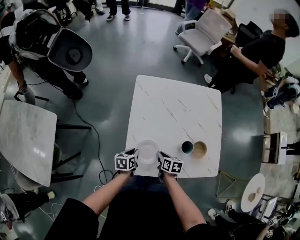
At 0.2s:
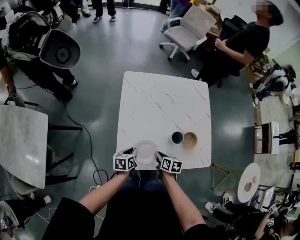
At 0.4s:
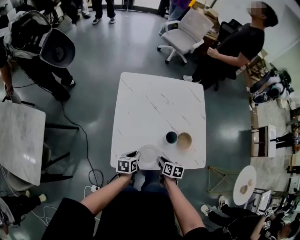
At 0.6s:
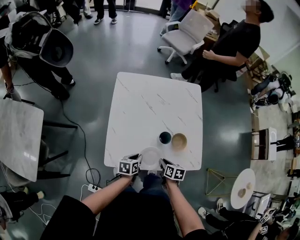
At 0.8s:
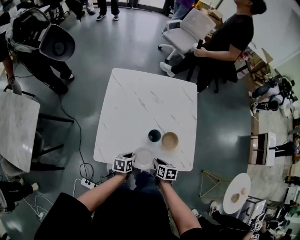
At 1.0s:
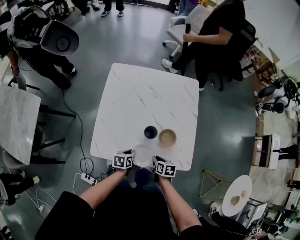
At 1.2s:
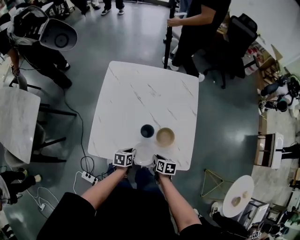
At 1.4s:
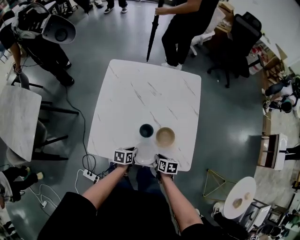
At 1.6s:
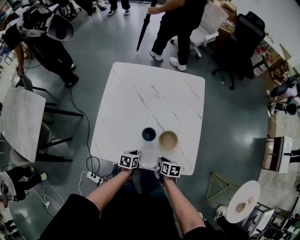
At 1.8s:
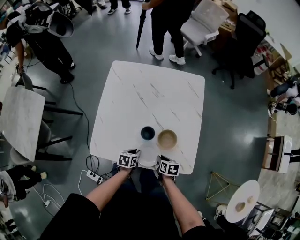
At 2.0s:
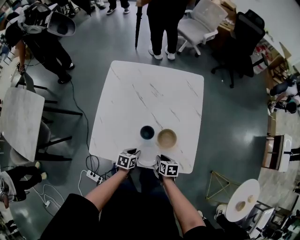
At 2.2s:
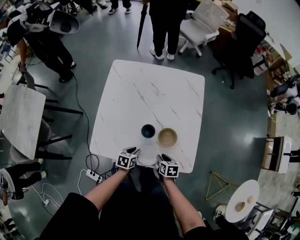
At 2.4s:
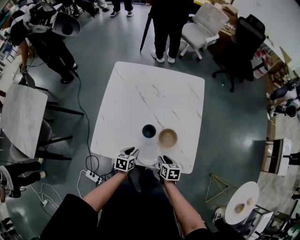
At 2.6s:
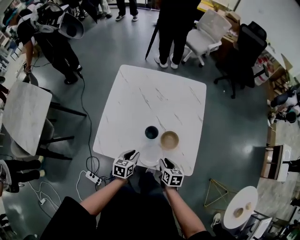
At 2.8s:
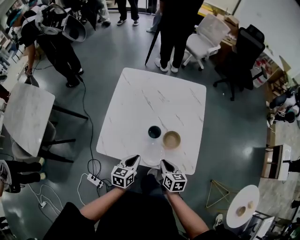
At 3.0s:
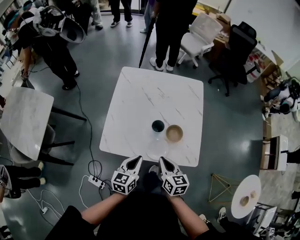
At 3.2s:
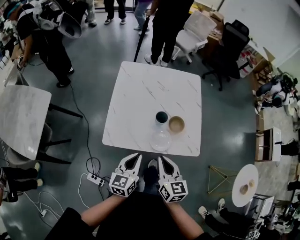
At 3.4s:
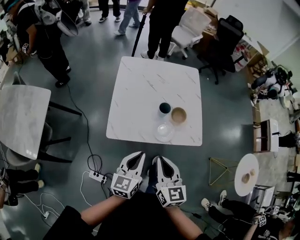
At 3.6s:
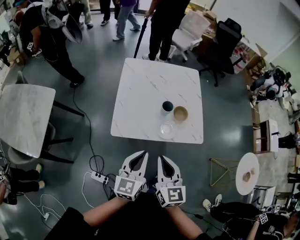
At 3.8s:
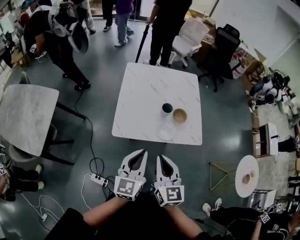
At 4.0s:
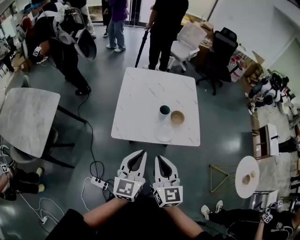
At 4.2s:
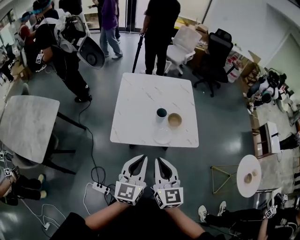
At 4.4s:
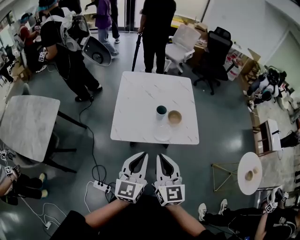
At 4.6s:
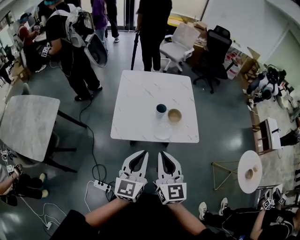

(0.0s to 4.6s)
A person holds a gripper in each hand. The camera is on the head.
0.0s - 1.6s: Both grippers move to the right, about 25 cm.
1.6s - 3.0s: Both grippers move upward, some 25 cm. The left gripper points its fingers roughly 30 degrees further upward. Meanwhile the right gripper swivels some 40 degrees.
3.0s - 4.6s: The grippers both shift upward and backward by roughly 30 cm. The right gripper changes its angle by about 40 degrees, while the left gripper swivels about 30 degrees.

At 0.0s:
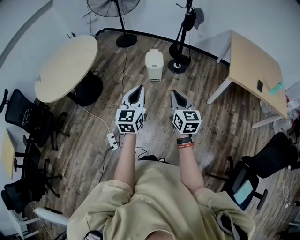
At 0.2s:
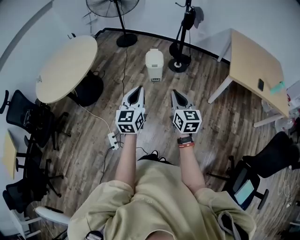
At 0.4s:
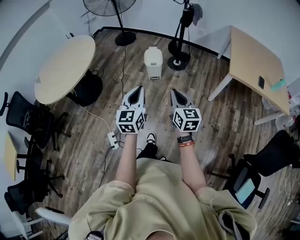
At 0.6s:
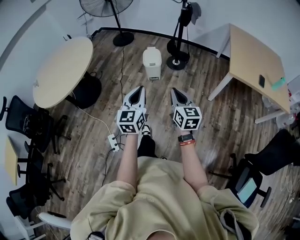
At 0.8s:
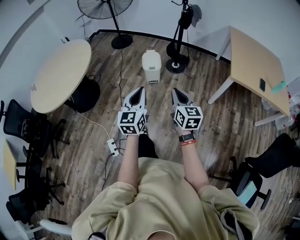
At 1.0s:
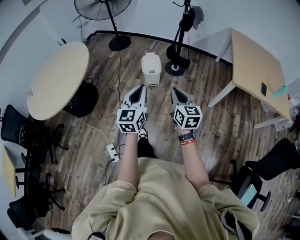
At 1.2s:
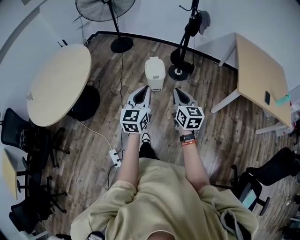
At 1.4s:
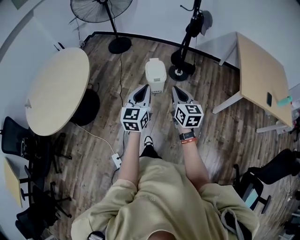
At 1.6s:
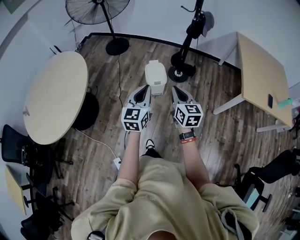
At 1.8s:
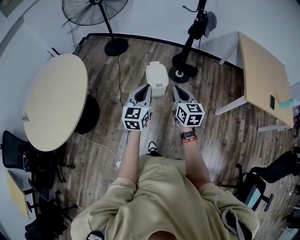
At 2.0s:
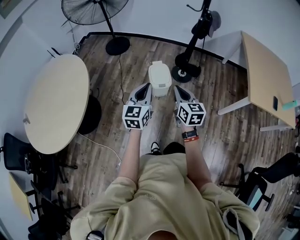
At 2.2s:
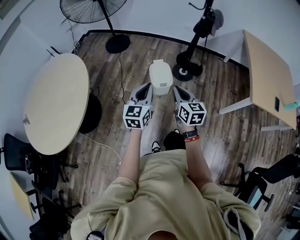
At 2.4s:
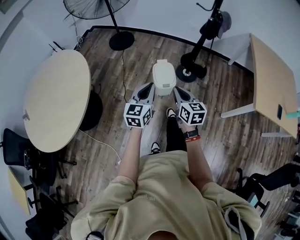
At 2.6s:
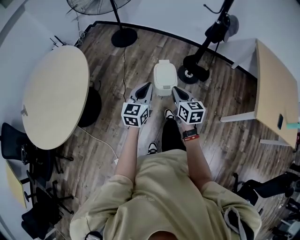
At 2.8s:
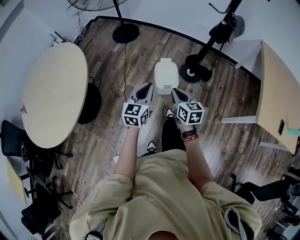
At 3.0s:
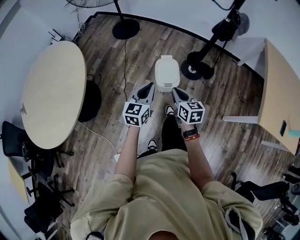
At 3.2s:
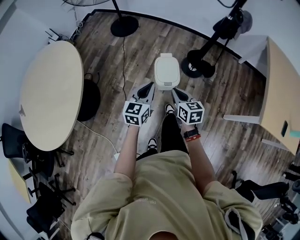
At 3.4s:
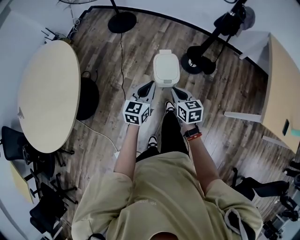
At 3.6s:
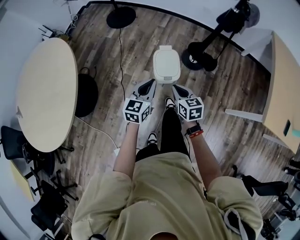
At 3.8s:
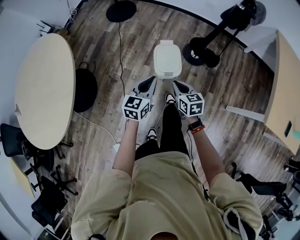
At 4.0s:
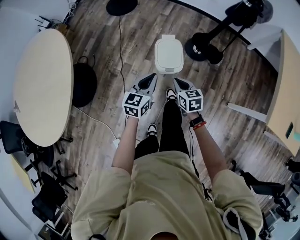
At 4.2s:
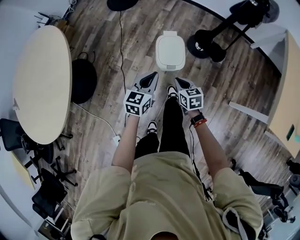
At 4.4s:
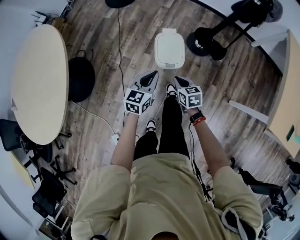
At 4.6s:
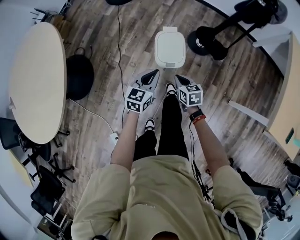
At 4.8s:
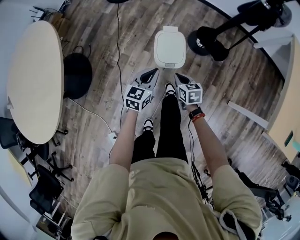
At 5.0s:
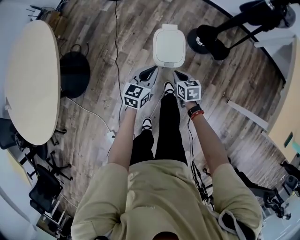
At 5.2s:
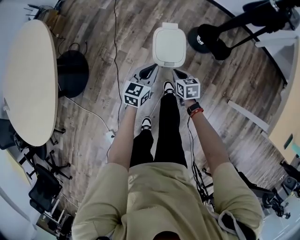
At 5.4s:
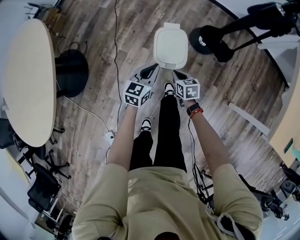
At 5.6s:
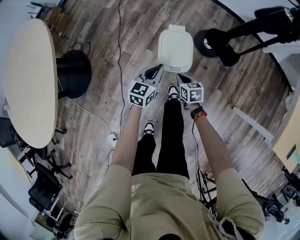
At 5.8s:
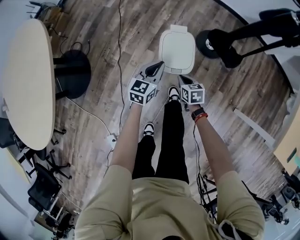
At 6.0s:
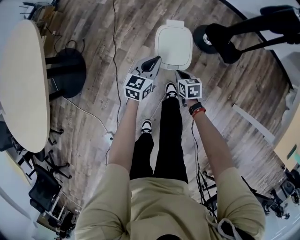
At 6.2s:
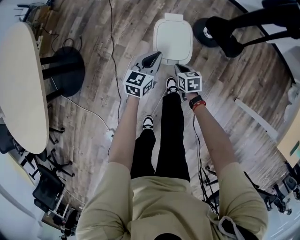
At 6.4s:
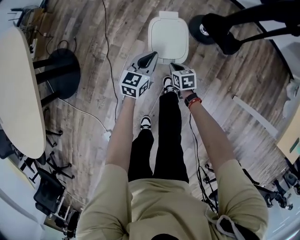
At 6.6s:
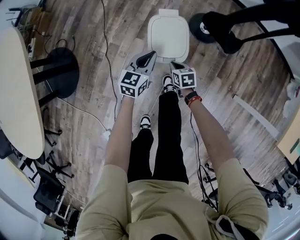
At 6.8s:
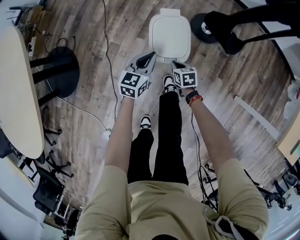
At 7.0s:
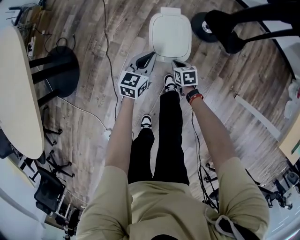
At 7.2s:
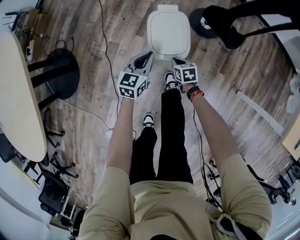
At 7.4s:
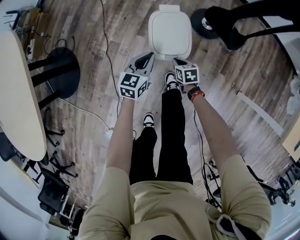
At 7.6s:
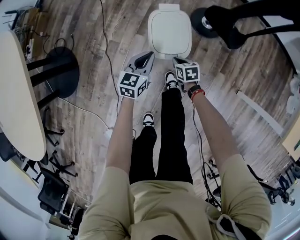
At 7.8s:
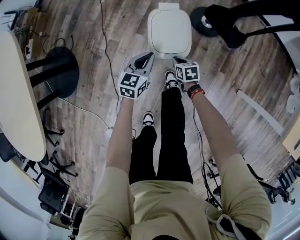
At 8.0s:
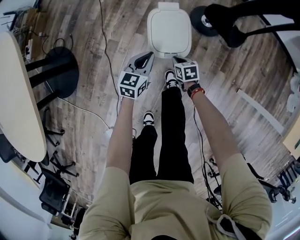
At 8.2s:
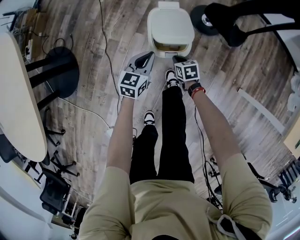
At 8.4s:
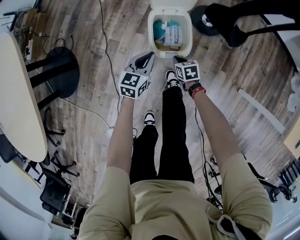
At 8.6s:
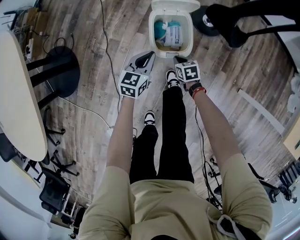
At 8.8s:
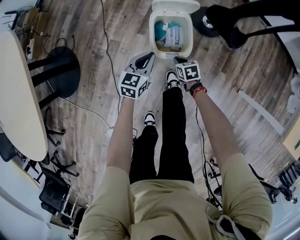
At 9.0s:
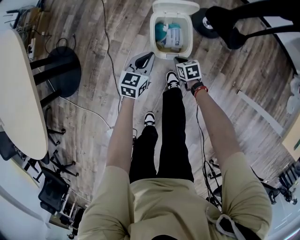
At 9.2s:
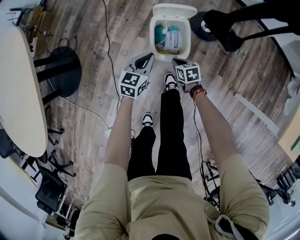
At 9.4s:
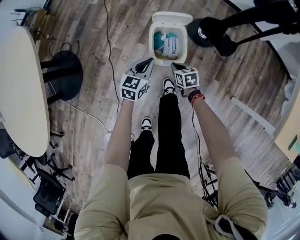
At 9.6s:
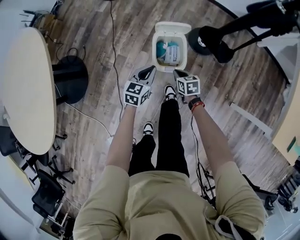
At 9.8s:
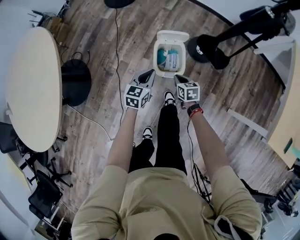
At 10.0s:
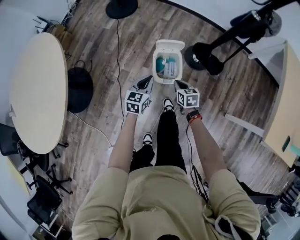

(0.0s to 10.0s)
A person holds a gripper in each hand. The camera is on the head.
0.0s - 1.4s: Both grippers move forward, roughly 35 cm.
1.4s - 2.8s: The right gripper is displaced forward and downward by about 35 cm. Meanwhile the left gripper travels forward by approximately 30 cm.
2.8s - 4.2s: The two grippers go approximately 25 cm downward and forward. The right gripper turns by about 20 degrees.
4.2s - 5.8s: The two grippers go roughly 25 cm downward and forward.
5.8s - 7.2s: Both grippers travel together downward, approximately 10 cm.
7.2s - 8.6s: There are only small adjustments of the grippers.
8.6s - 10.0s: The grippers both shift upward by roughly 30 cm.

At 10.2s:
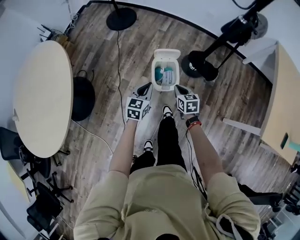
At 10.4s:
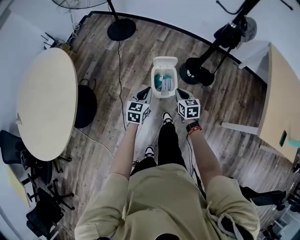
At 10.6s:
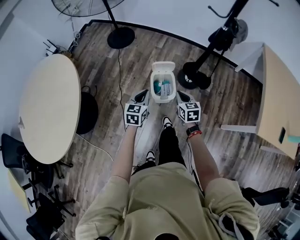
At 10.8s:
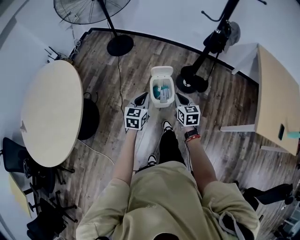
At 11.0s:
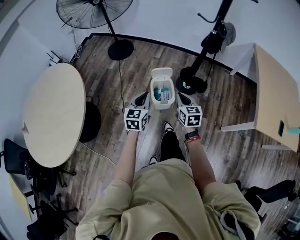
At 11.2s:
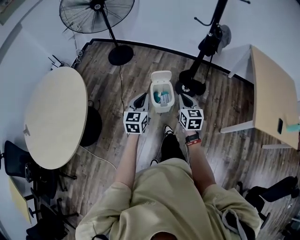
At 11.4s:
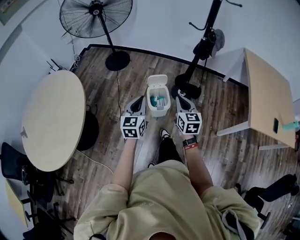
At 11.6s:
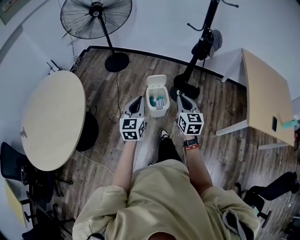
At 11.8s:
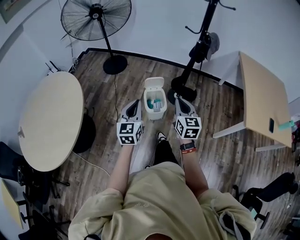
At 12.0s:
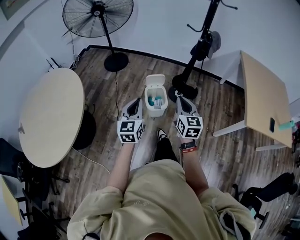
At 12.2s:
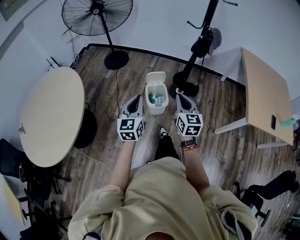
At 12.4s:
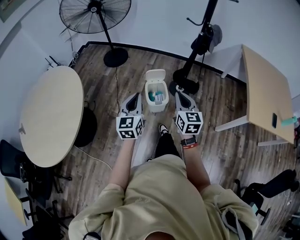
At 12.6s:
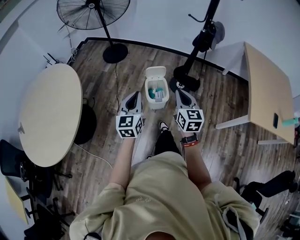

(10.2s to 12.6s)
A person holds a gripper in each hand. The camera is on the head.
10.2s - 11.4s: Both grippers travel together upward and backward, some 35 cm. The right gripper changes its angle by some 30 degrees.

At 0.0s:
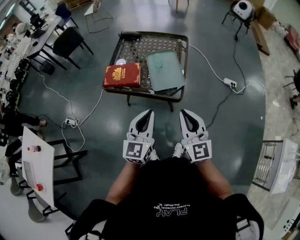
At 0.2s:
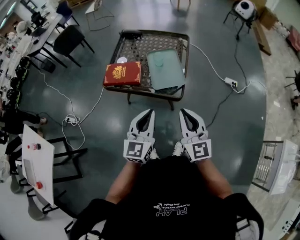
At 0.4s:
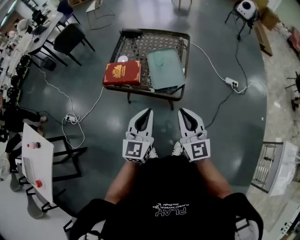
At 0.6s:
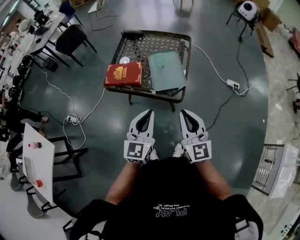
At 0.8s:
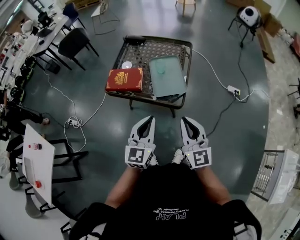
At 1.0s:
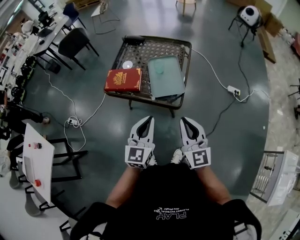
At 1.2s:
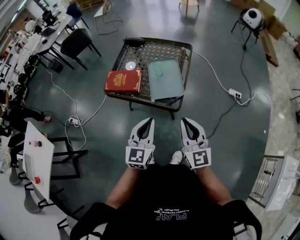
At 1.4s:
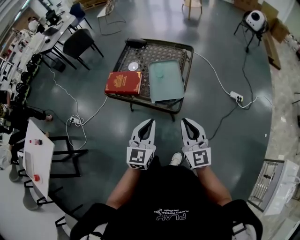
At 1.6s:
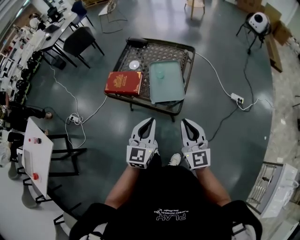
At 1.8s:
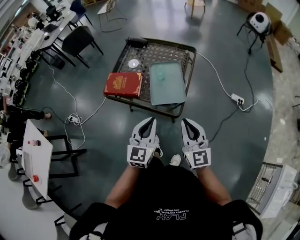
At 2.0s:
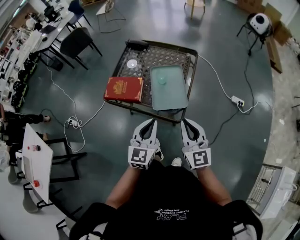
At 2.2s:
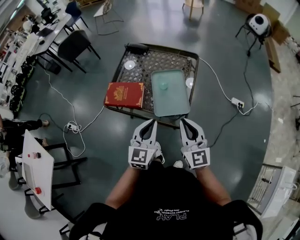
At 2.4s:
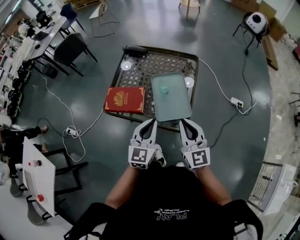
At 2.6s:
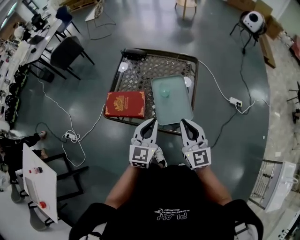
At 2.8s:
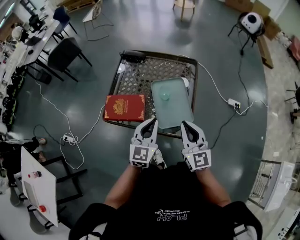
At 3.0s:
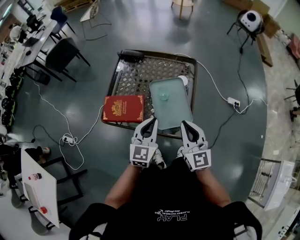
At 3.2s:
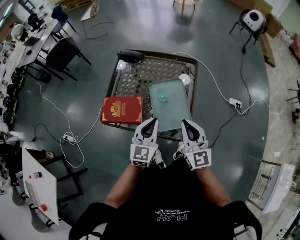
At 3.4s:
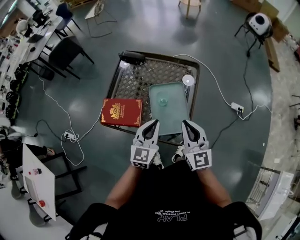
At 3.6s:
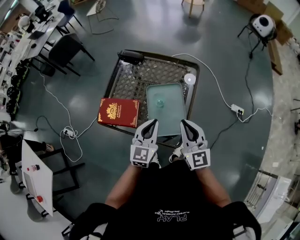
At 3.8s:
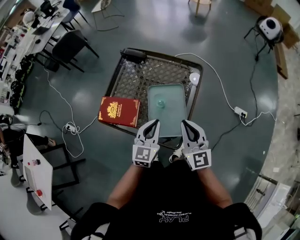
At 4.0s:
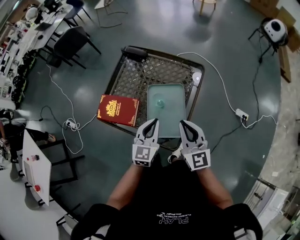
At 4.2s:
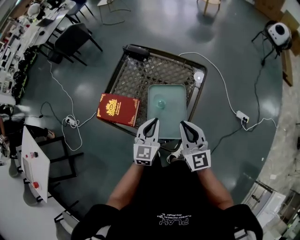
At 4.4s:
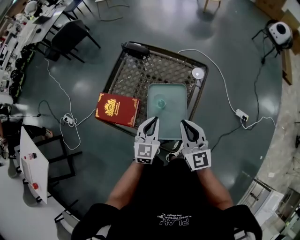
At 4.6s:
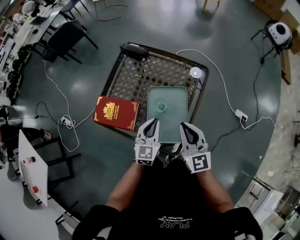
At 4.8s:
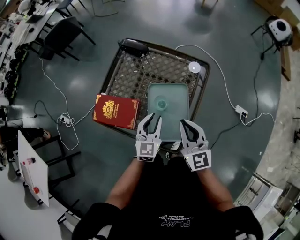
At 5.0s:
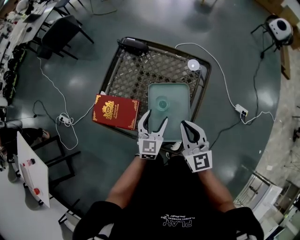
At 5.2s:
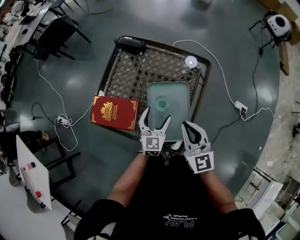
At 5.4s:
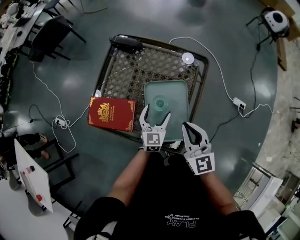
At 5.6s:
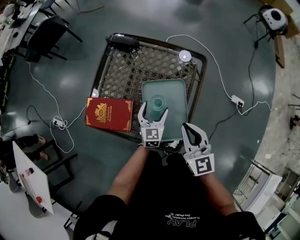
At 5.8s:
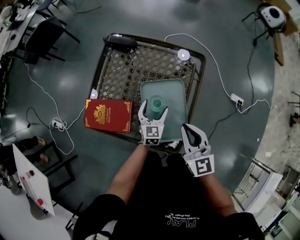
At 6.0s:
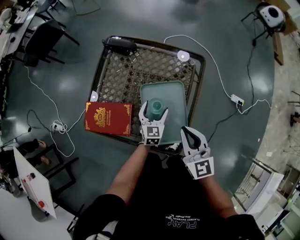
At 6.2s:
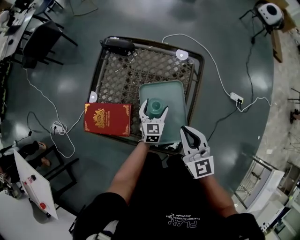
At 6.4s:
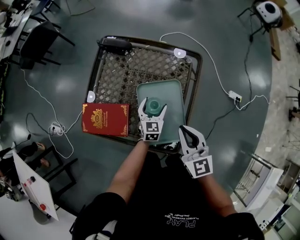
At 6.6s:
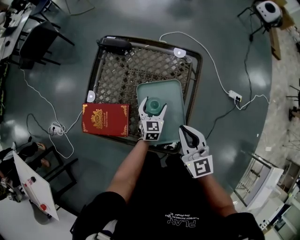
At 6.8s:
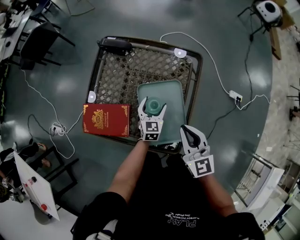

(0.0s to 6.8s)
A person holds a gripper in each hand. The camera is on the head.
0.0s - 1.4s: The two grippers go approximately 5 cm to the right.
1.4s - 2.8s: The left gripper goes roughly 20 cm forward. The right gripper goes approximately 20 cm forward and to the left.
2.8s - 4.0s: The left gripper heads to the right, forward and downward, covering approximately 15 cm. The right gripper moves forward and to the right, some 15 cm.
4.0s - 5.4s: The right gripper is displaced forward and downward by roughly 10 cm, while the left gripper moves downward and forward, about 15 cm, and opens.
5.4s - 6.8s: The left gripper goes about 5 cm downward.
